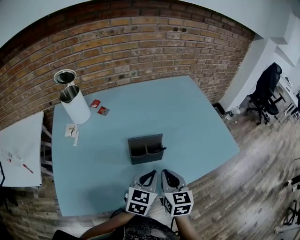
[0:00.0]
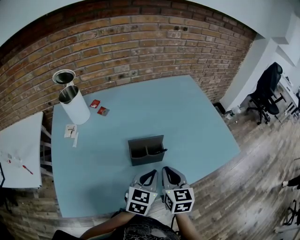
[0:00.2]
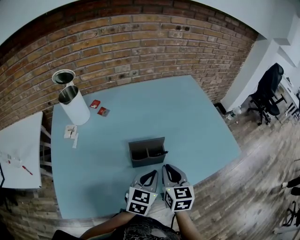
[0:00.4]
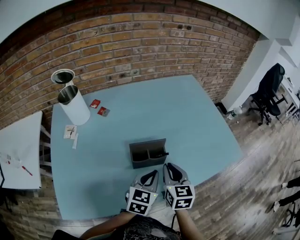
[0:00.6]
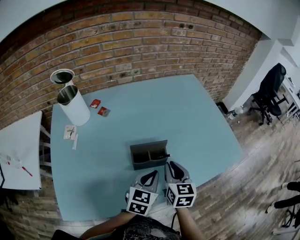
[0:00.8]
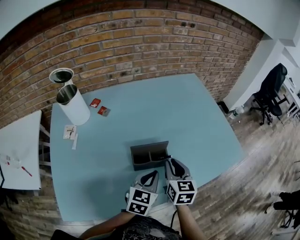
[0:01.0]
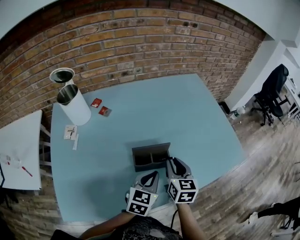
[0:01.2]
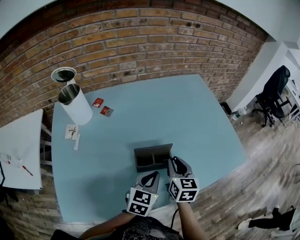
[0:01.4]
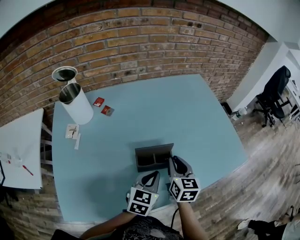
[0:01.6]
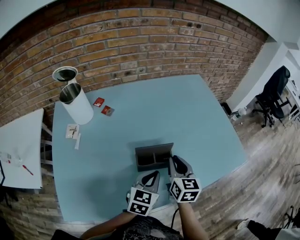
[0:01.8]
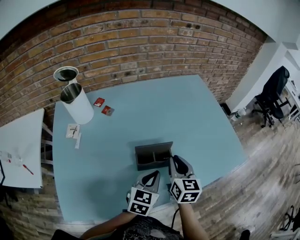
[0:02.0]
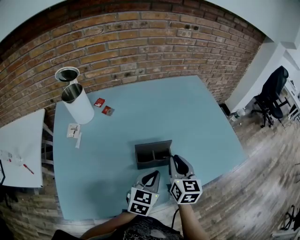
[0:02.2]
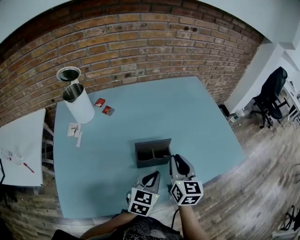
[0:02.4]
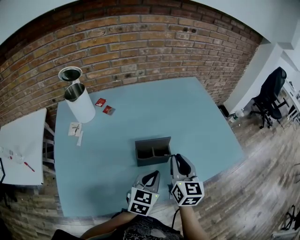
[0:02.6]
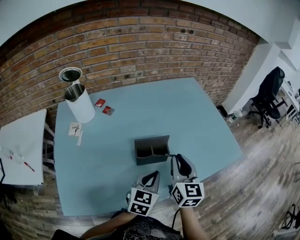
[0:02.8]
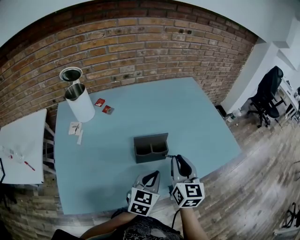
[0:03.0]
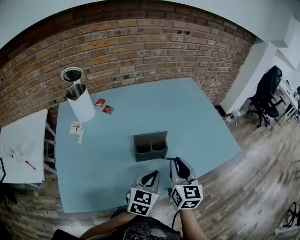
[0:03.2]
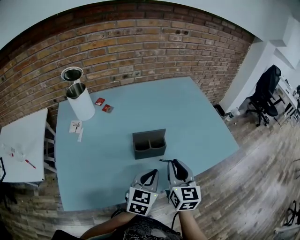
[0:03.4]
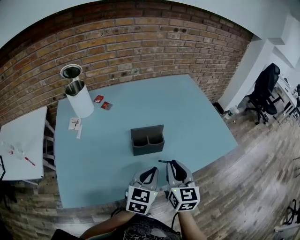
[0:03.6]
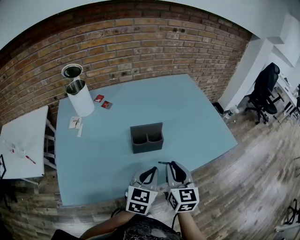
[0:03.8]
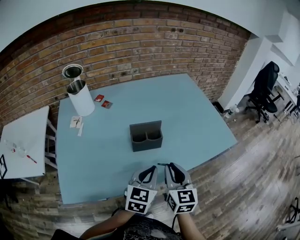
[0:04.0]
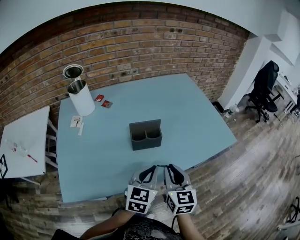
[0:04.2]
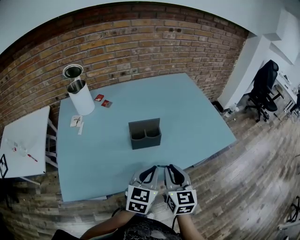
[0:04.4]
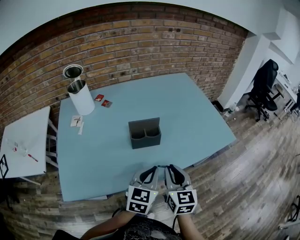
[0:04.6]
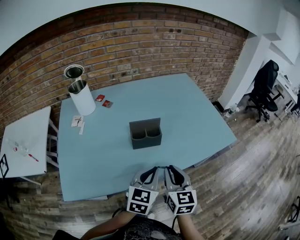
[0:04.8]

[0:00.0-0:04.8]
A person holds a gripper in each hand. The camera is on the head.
0:00.0 to 0:01.6: The right gripper is displaced forward by approximately 10 cm; the left gripper ends up about 5 cm from where it was.
0:01.6 to 0:03.2: The left gripper heads backward, covering approximately 5 cm. Meanwhile the right gripper is displaced backward and upward by about 10 cm.
0:03.2 to 0:04.8: The right gripper is displaced backward by about 10 cm. Meanwhile the left gripper moves backward, approximately 5 cm.

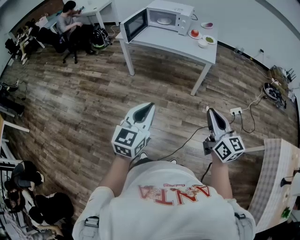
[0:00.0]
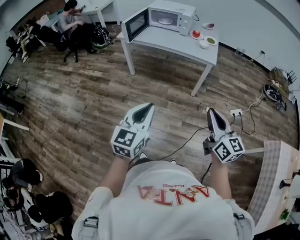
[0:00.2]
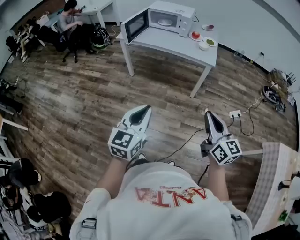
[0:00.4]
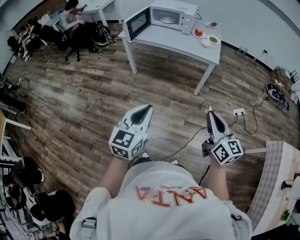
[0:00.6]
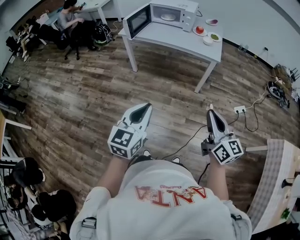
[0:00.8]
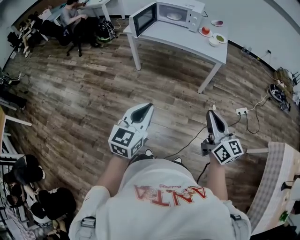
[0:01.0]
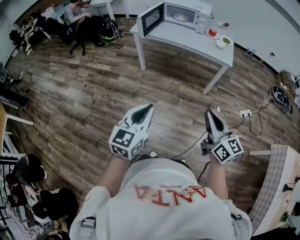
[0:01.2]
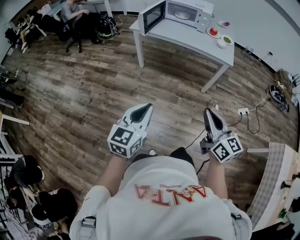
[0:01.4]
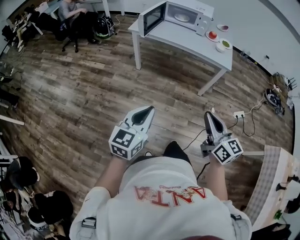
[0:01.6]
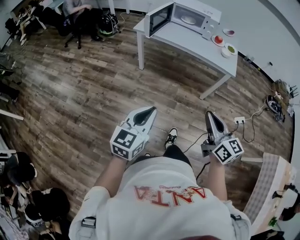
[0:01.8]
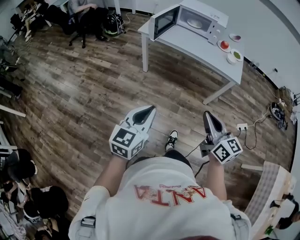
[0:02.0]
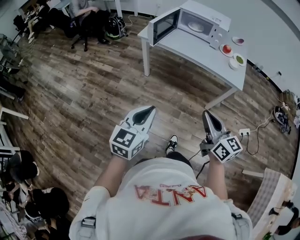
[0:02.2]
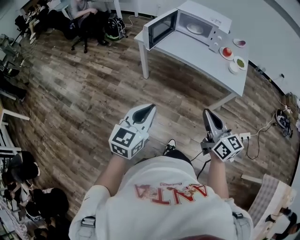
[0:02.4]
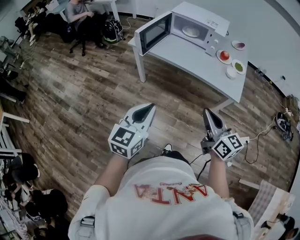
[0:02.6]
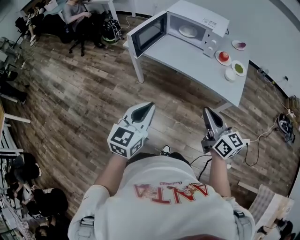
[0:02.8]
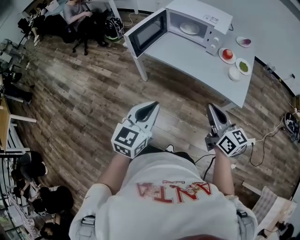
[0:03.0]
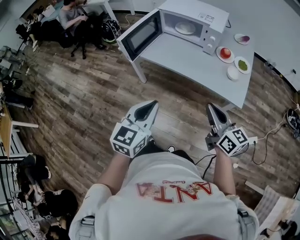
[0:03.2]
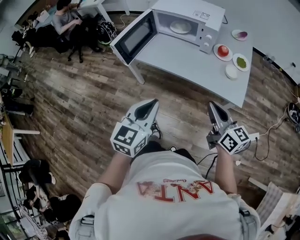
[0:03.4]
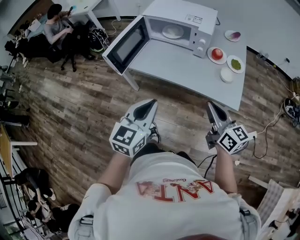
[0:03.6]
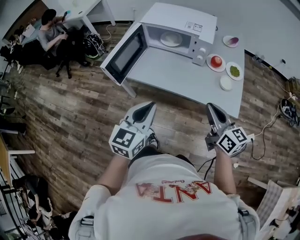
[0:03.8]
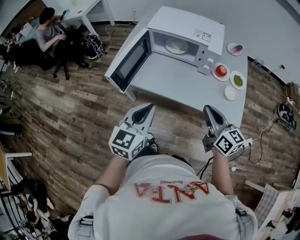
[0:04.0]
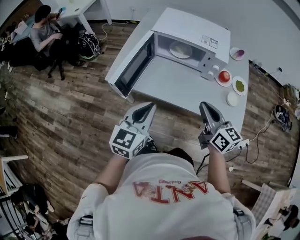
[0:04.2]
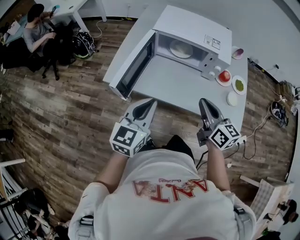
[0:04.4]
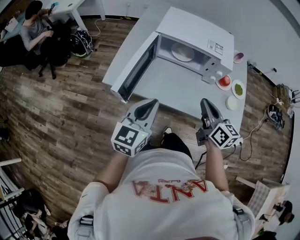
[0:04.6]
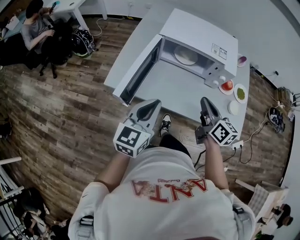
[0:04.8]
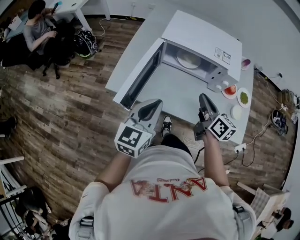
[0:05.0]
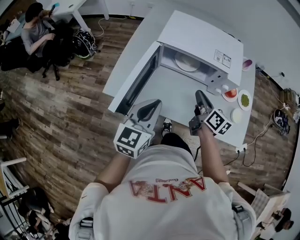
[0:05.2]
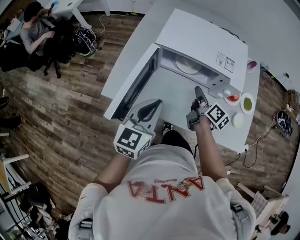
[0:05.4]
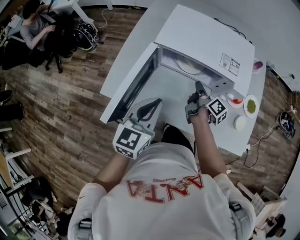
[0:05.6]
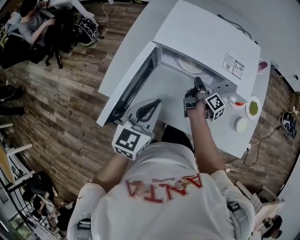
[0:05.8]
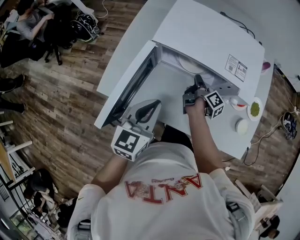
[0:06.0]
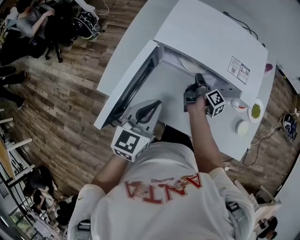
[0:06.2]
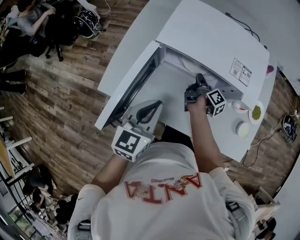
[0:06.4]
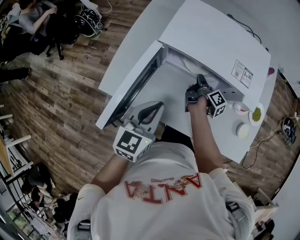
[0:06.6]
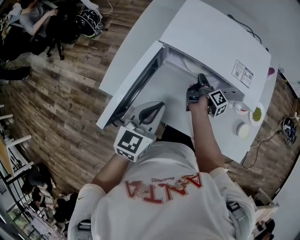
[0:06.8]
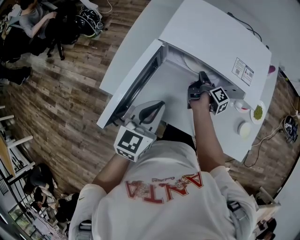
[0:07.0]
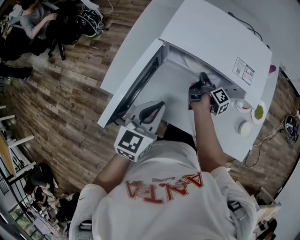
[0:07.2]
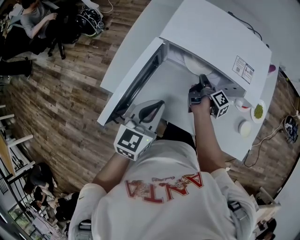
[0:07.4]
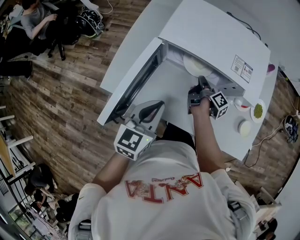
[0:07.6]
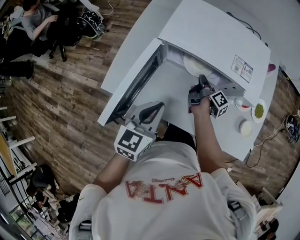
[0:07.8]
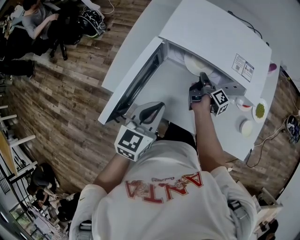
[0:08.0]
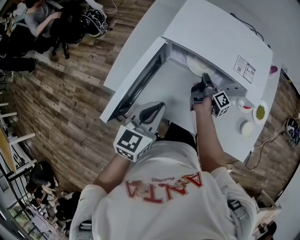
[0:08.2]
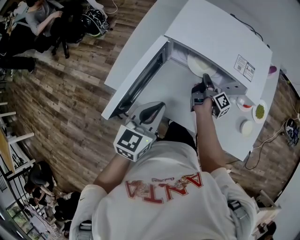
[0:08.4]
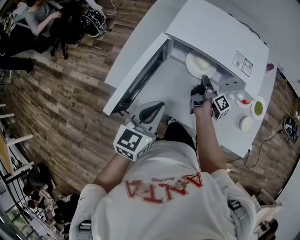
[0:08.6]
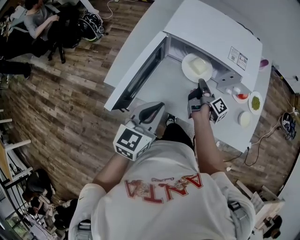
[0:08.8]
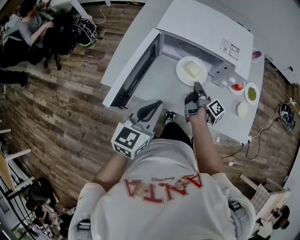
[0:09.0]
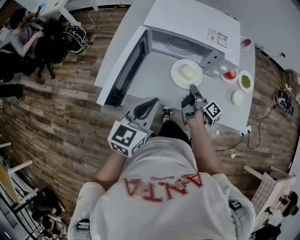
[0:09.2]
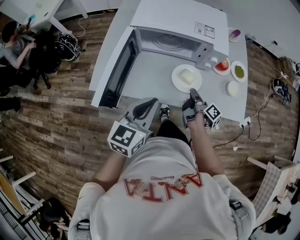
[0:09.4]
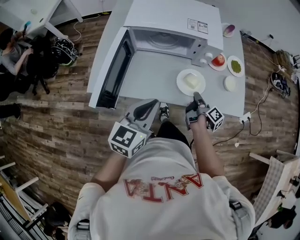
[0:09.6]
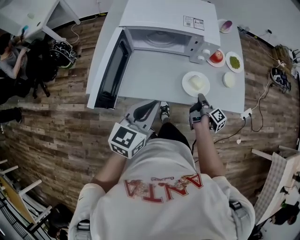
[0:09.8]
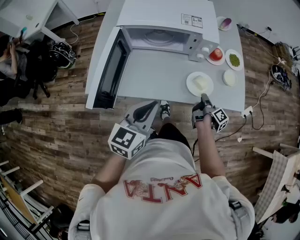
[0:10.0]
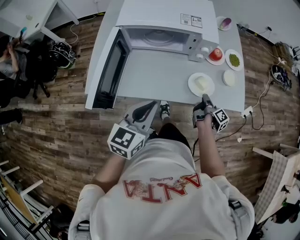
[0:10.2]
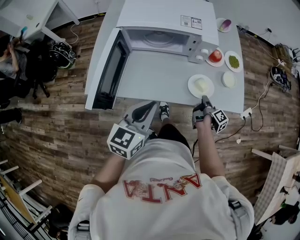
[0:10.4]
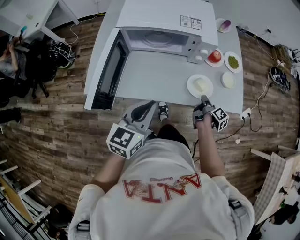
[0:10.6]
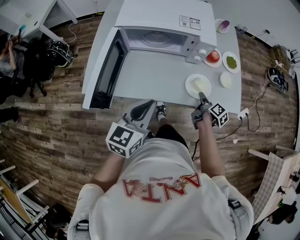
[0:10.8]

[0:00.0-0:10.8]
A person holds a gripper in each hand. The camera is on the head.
0:00.0 to 0:01.6: The grippers both shift to the left by approximately 15 cm.
0:01.6 to 0:03.0: The right gripper travels forward by some 35 cm. The left gripper moves forward and to the right, about 35 cm.
0:03.0 to 0:04.6: The grippers both shift forward by about 30 cm. The right gripper turns by some 20 degrees.
0:04.6 to 0:06.2: The right gripper shifts roughly 35 cm forward and downward, and twists some 60 degrees clockwise, seen from behind; the left gripper goes roughly 15 cm forward and downward.
0:06.2 to 0:07.8: The grippers stay close to where they were, moving slightly.
0:07.8 to 0:09.2: The left gripper travels backward by some 10 cm, while the right gripper moves backward, approximately 15 cm.
0:09.2 to 0:10.8: The left gripper heads to the right, covering approximately 5 cm. The right gripper shifts roughly 20 cm to the right, swivels roughly 20 degrees, and opens.

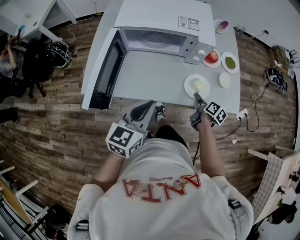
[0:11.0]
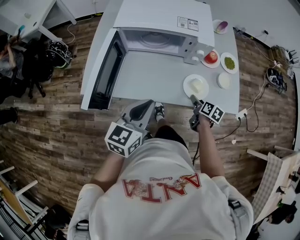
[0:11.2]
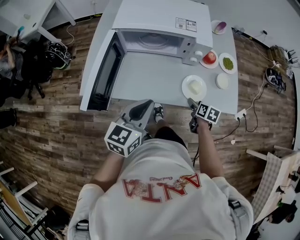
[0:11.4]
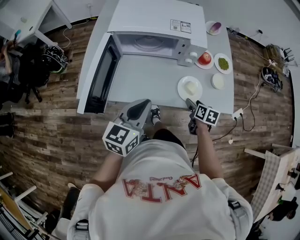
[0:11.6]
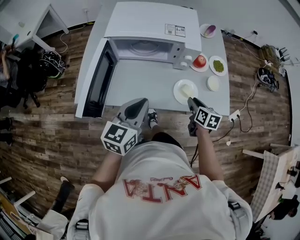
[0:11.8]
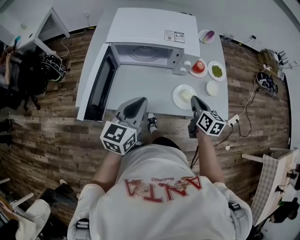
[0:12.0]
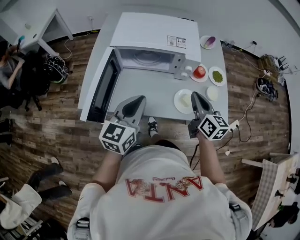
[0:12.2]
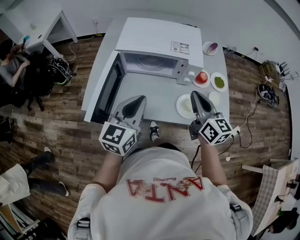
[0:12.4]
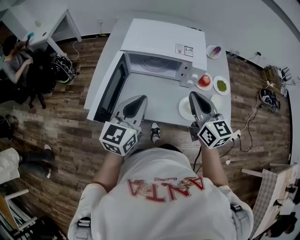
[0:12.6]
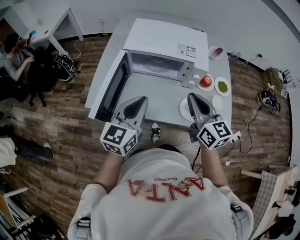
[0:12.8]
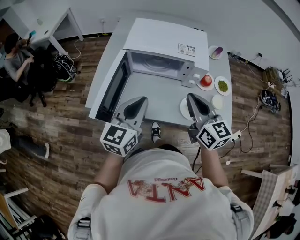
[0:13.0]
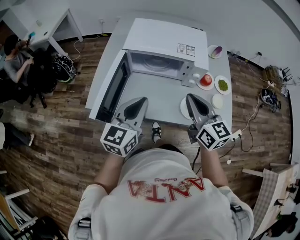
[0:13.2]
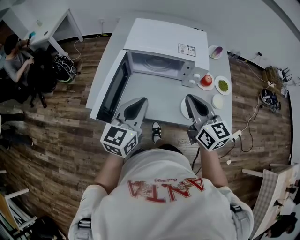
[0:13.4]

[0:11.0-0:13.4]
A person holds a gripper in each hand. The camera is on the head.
0:11.0 to 0:12.2: The left gripper moves forward and upward, approximately 5 cm, while the right gripper travels upward by approximately 25 cm, swivels about 50 degrees, and closes its fingers.
0:12.2 to 0:13.4: The right gripper moves to the left and upward, approximately 10 cm.

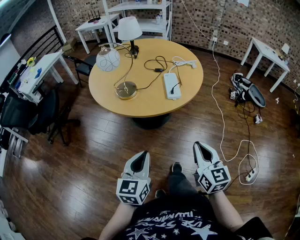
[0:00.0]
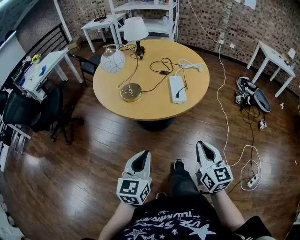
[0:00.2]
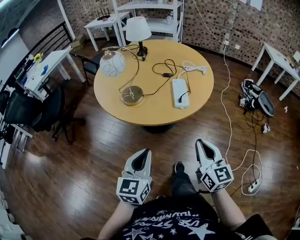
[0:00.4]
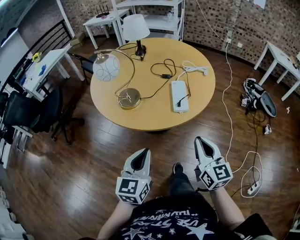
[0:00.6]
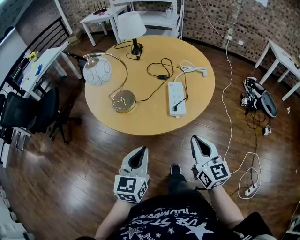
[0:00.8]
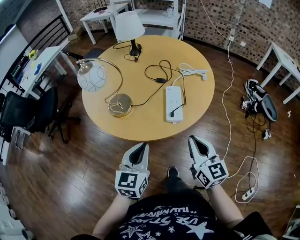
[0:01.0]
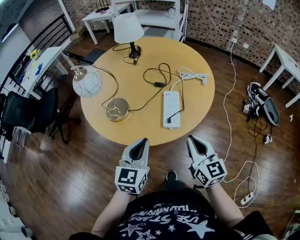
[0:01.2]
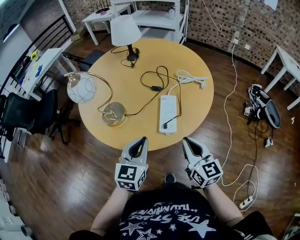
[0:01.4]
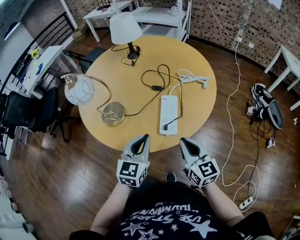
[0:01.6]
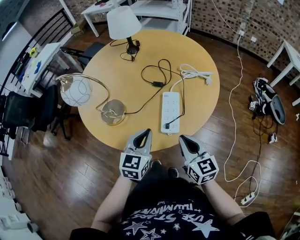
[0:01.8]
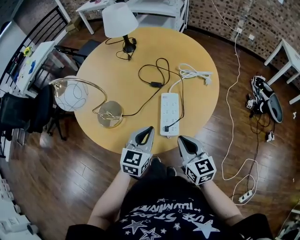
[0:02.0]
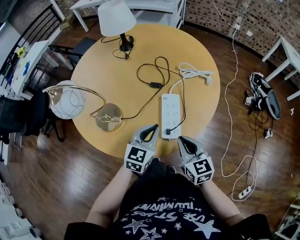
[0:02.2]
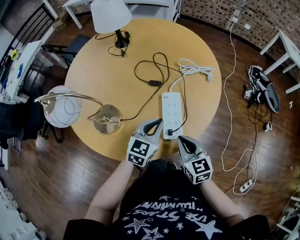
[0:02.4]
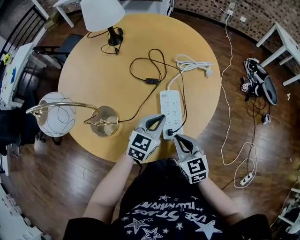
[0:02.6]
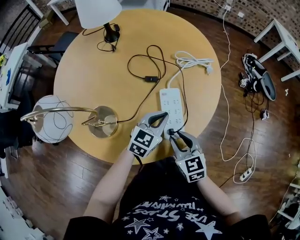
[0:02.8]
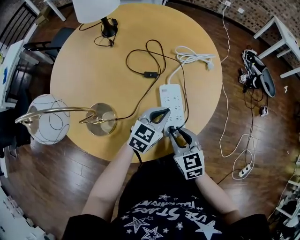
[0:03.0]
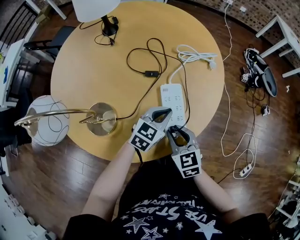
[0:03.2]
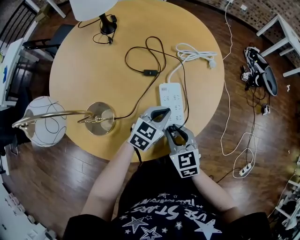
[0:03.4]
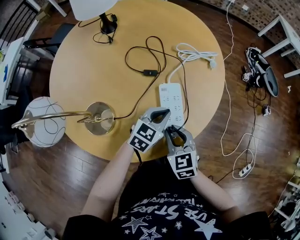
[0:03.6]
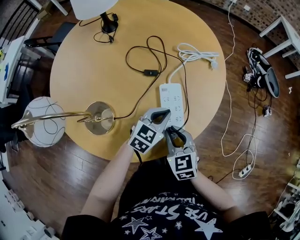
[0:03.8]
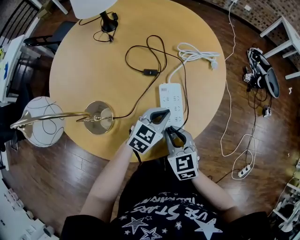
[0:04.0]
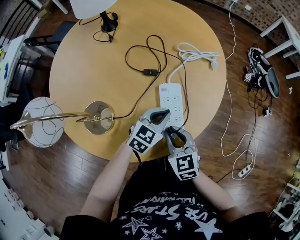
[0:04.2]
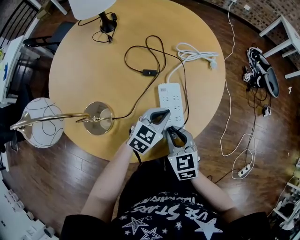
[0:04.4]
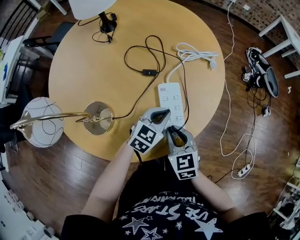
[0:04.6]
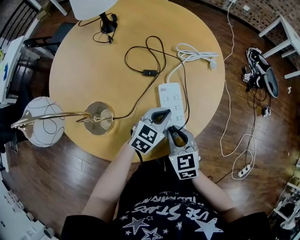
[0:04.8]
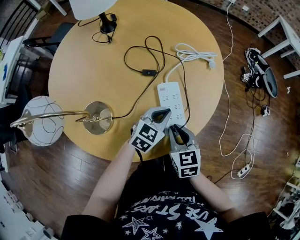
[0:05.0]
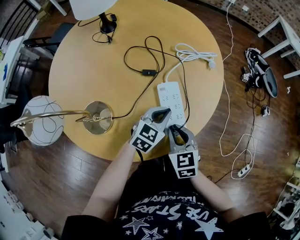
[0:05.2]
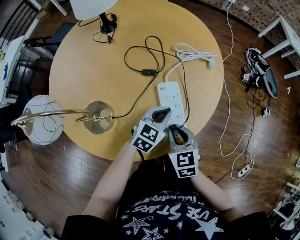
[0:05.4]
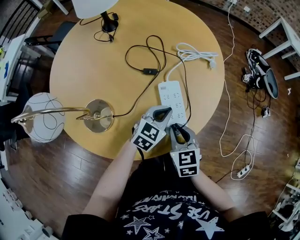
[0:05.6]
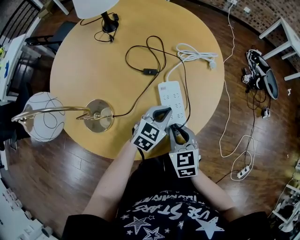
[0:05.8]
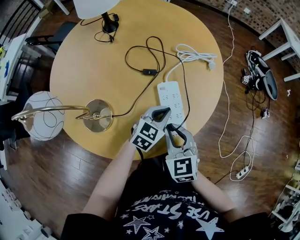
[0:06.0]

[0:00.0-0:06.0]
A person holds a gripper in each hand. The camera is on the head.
0:00.0 to 0:01.6: Both grippers travel together forward, approximately 25 cm.
0:01.6 to 0:03.0: The left gripper shifts roughly 20 cm forward, downward and to the right, and swivels approximately 30 degrees, while the right gripper travels downward, to the left and forward by approximately 15 cm, changes its angle by roughly 30 degrees, and opens its fingers.
0:03.0 to 0:06.0: There are only small adjustments of the grippers.
